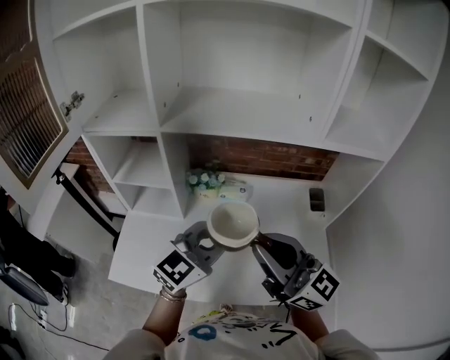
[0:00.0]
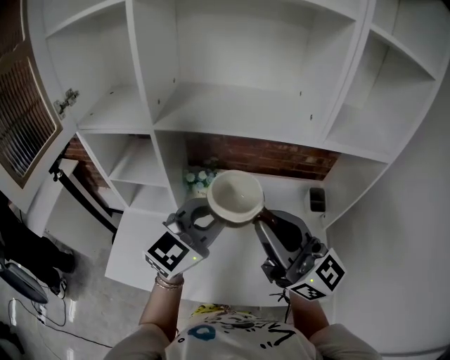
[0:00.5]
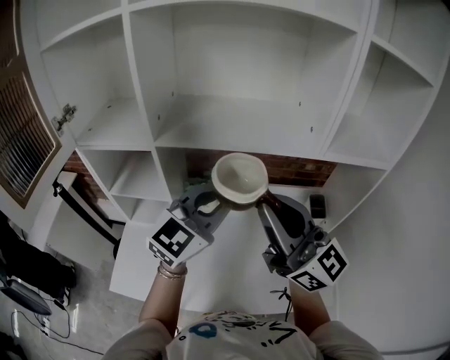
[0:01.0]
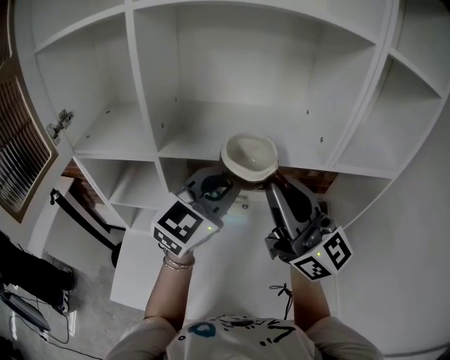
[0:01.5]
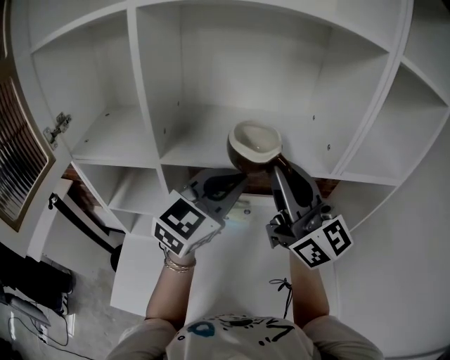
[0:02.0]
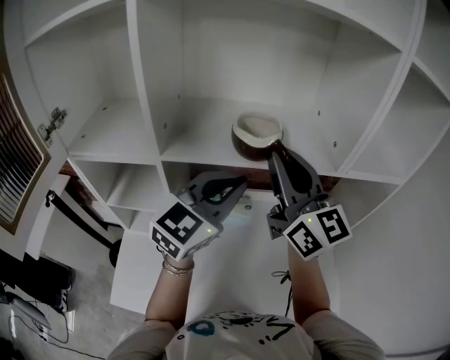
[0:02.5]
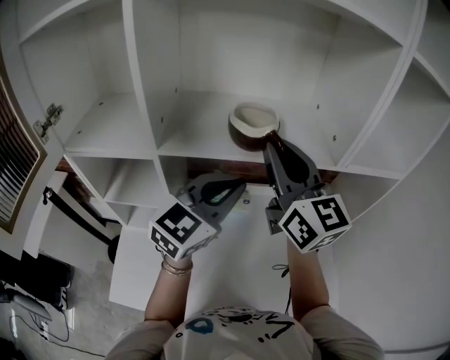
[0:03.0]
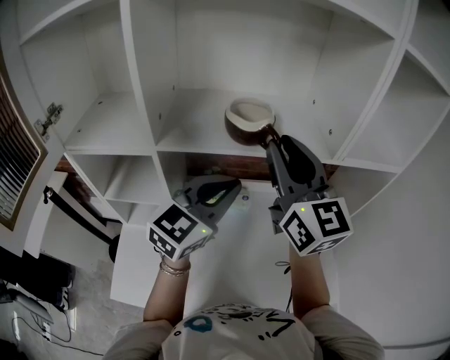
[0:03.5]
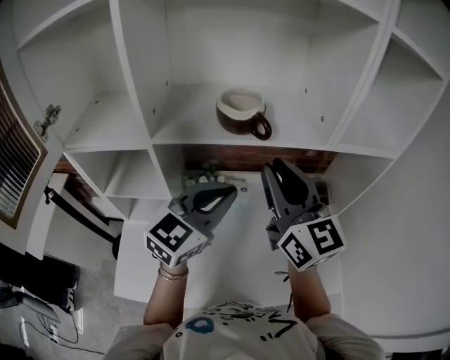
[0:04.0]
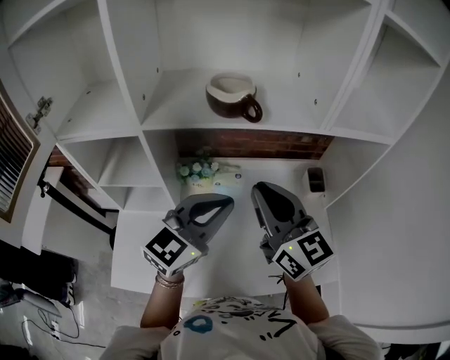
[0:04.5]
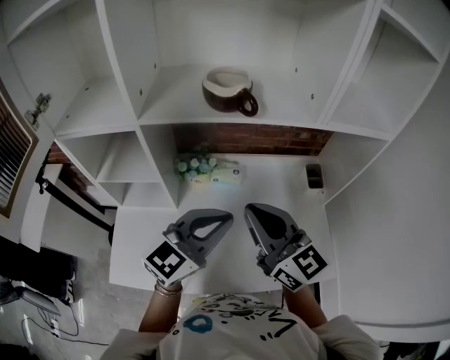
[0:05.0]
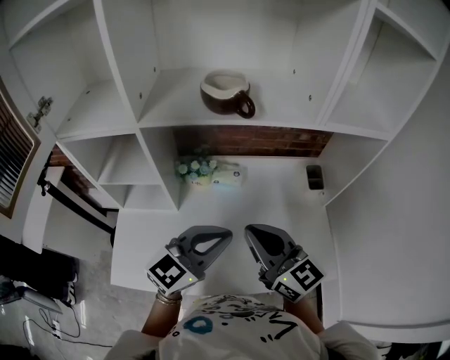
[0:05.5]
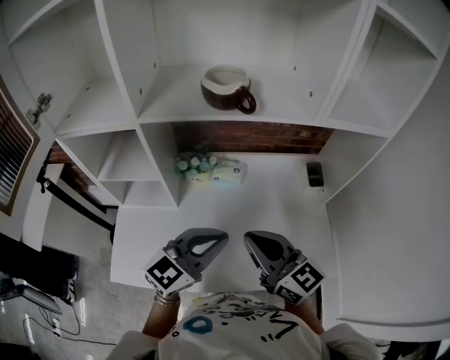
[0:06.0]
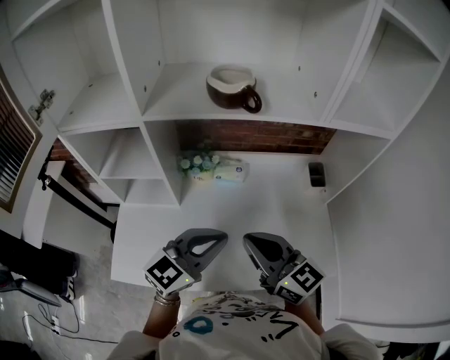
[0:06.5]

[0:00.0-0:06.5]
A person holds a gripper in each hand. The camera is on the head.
0:00.0 to 0:02.0: The two grippers go some 20 cm forward and upward.
0:02.0 to 0:04.5: The right gripper is displaced downward and backward by some 15 cm, and turns by approximately 20 degrees. Meanwhile the left gripper goes about 15 cm backward and downward.
0:04.5 to 0:06.5: Both grippers move backward and downward, some 15 cm.

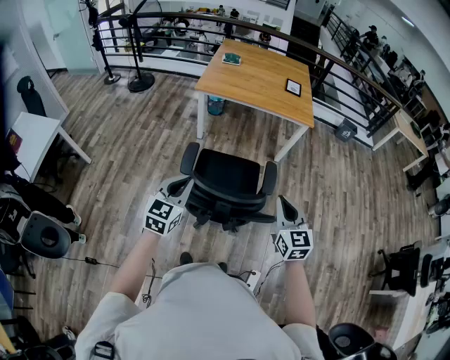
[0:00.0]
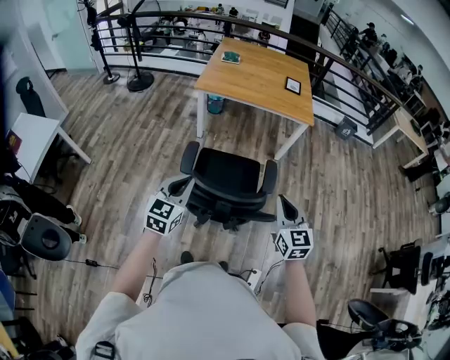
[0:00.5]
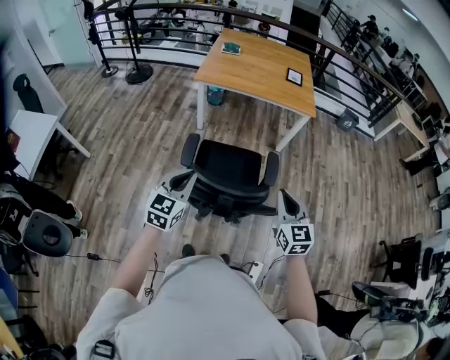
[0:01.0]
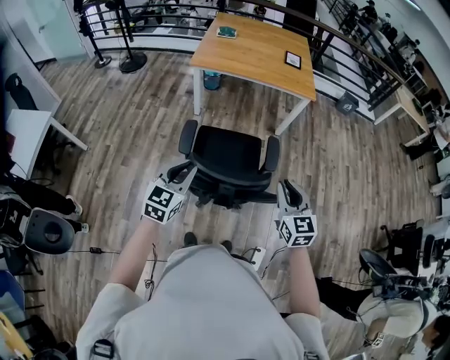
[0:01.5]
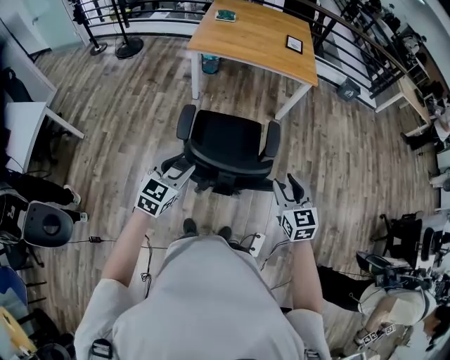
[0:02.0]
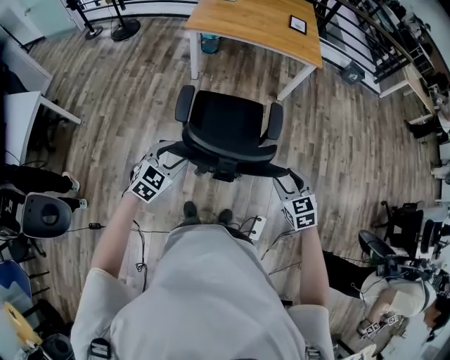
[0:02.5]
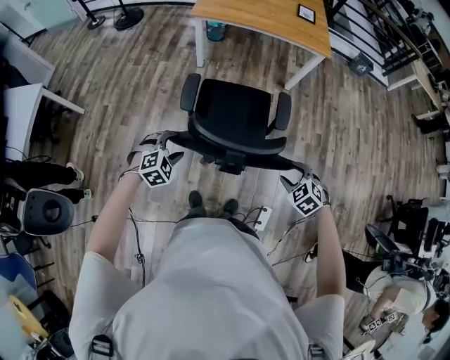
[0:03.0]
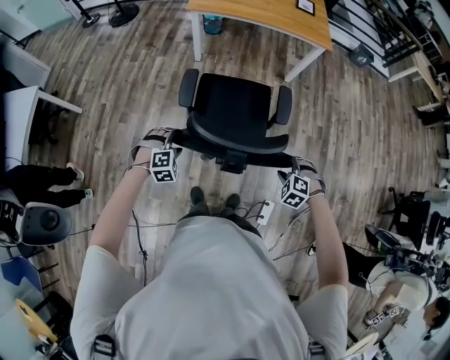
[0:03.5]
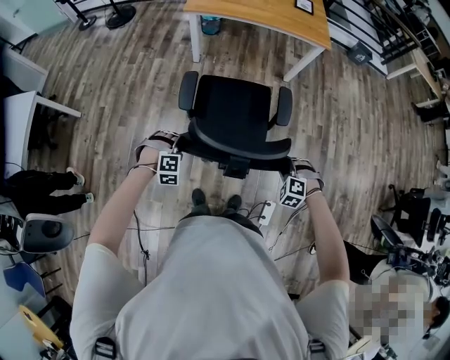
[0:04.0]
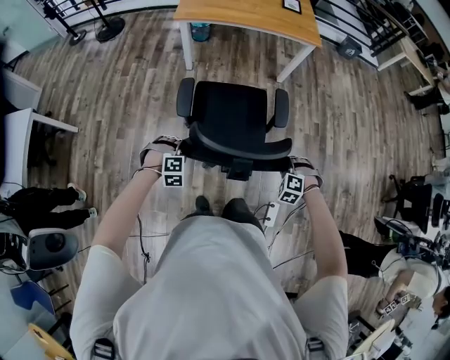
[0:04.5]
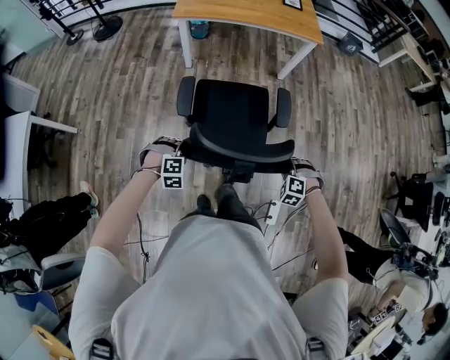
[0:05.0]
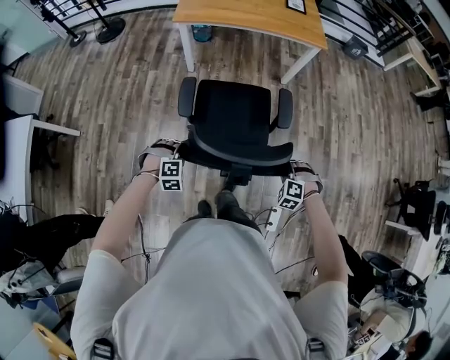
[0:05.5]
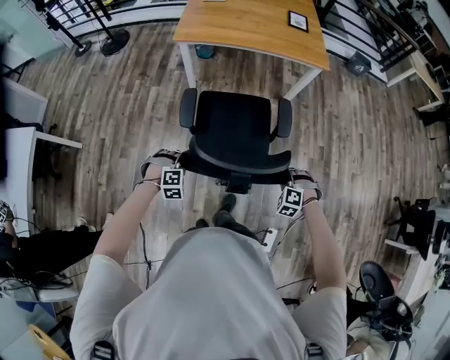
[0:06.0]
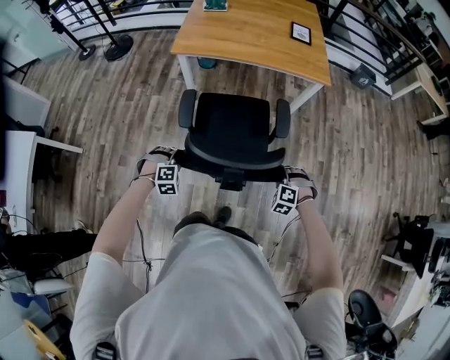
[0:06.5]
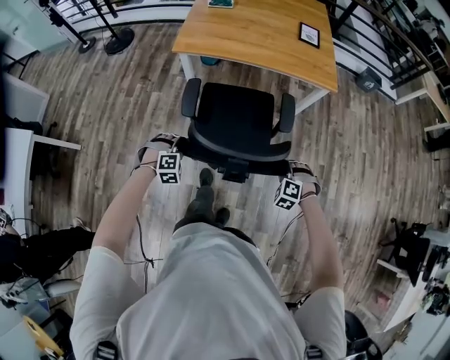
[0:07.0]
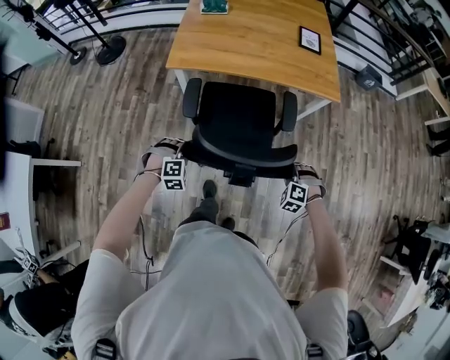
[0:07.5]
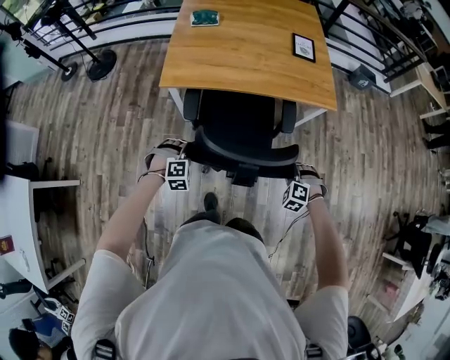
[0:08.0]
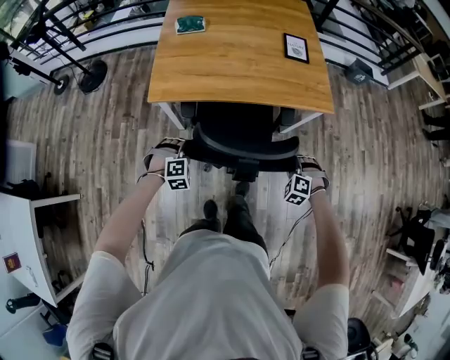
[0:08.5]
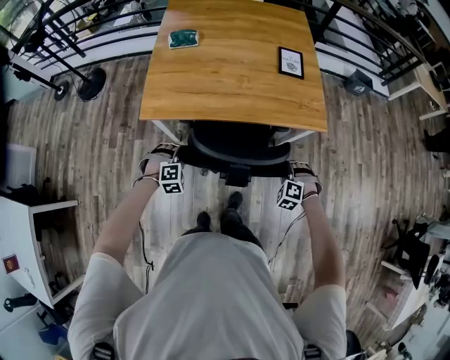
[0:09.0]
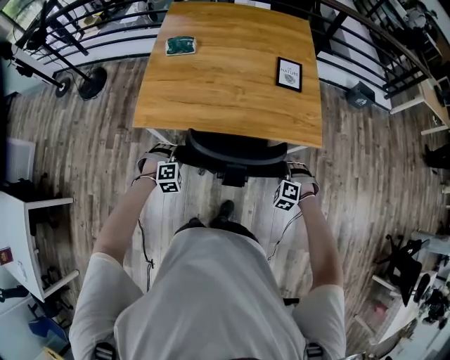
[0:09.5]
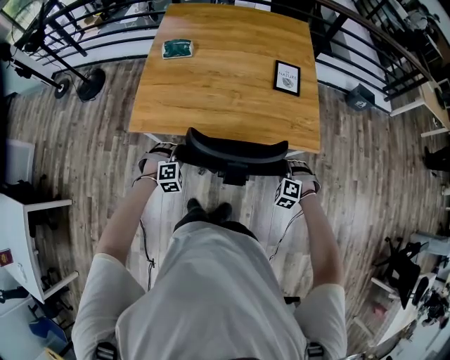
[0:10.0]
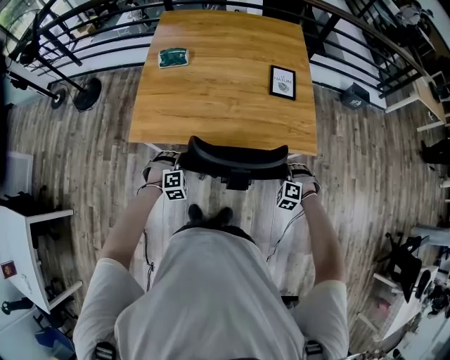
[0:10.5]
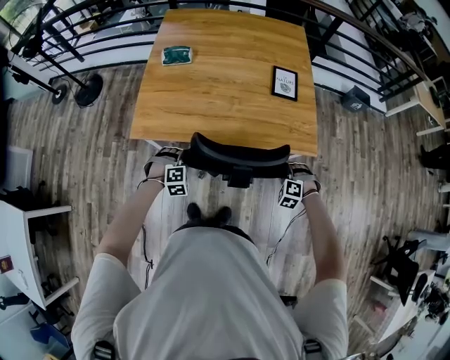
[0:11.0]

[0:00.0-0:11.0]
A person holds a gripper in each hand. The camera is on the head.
0:00.0 to 0:02.0: Both grippers move downward, about 5 cm. The left gripper opens up. The right gripper opens.
0:02.0 to 0:03.5: The two grippers go roughly 20 cm downward. The left gripper tips its fingers downward by roughly 40 degrees; the right gripper angles its fingers downward, by roughly 40 degrees.
0:03.5 to 0:05.5: The grippers both shift forward by some 5 cm. The left gripper closes up; the right gripper closes up.
0:05.5 to 0:07.5: Both grippers move forward, about 40 cm.
0:07.5 to 0:09.0: Both grippers travel together forward, about 25 cm.
0:09.0 to 0:11.0: Both grippers move forward, about 10 cm.

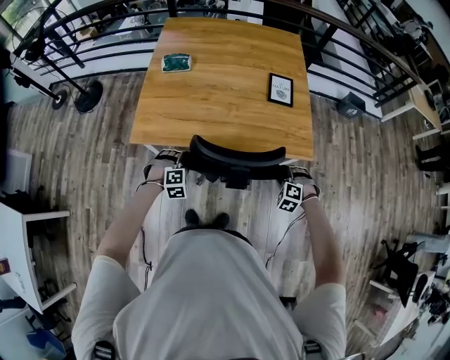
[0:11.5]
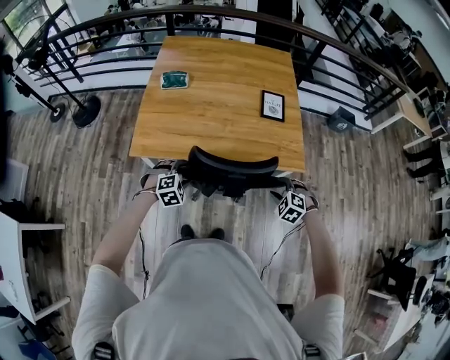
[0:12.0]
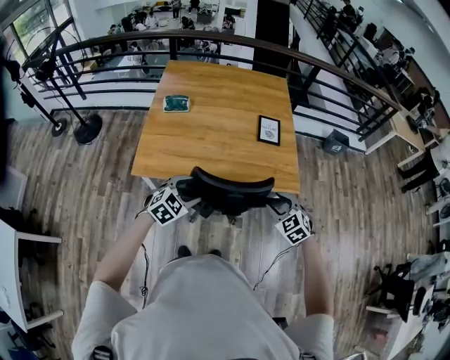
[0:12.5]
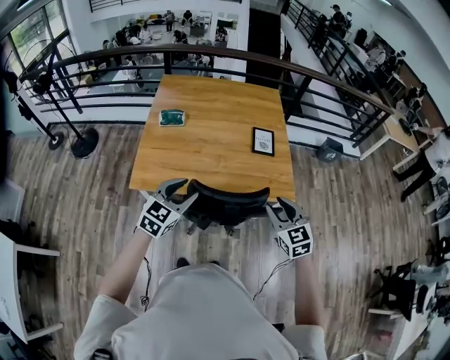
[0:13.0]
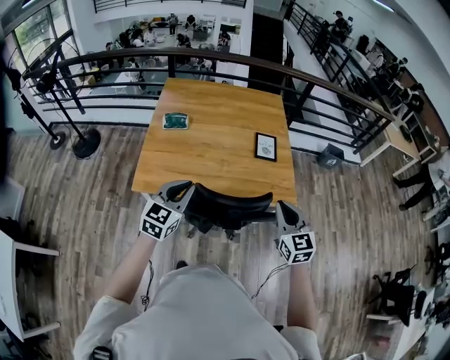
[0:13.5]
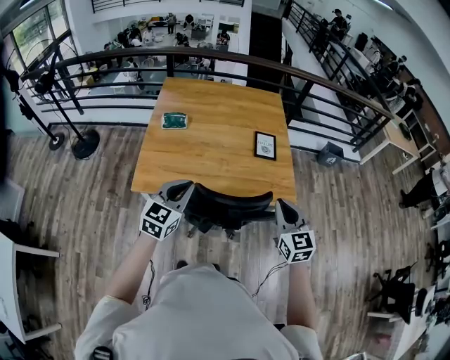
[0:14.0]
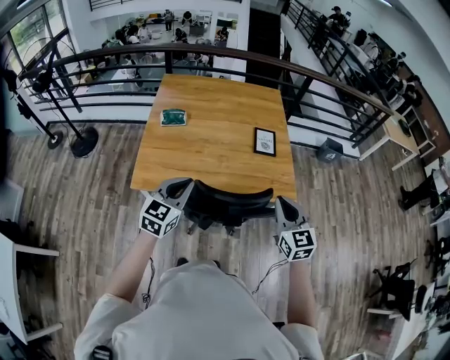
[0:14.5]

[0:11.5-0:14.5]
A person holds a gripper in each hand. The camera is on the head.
0:11.5 to 0:13.0: Both grippers move upward, about 25 cm. The right gripper tilts its fingers roughly 40 degrees upward. Meanwhile the left gripper tilts its fingers approximately 40 degrees upward.
0:13.0 to 0:14.5: The right gripper closes its fingers, while the left gripper closes up.

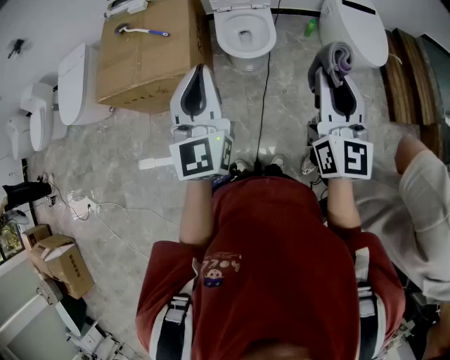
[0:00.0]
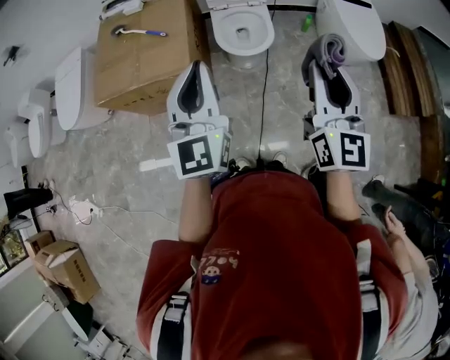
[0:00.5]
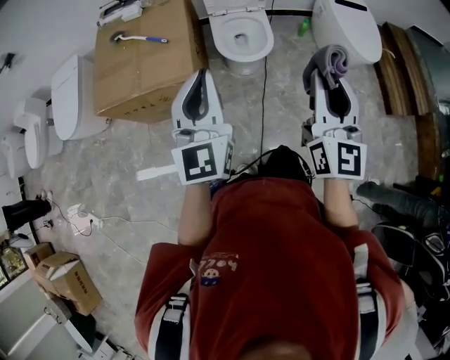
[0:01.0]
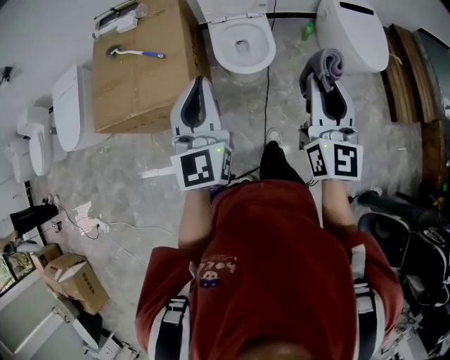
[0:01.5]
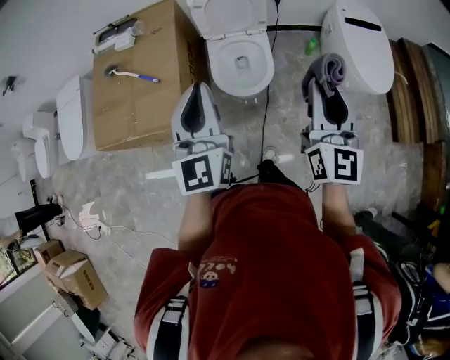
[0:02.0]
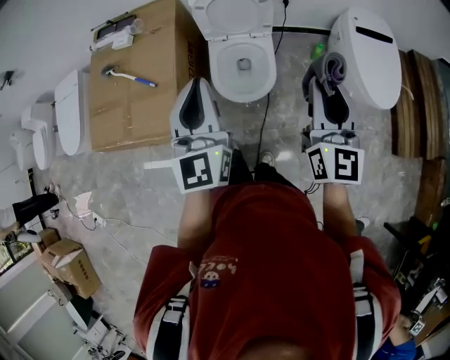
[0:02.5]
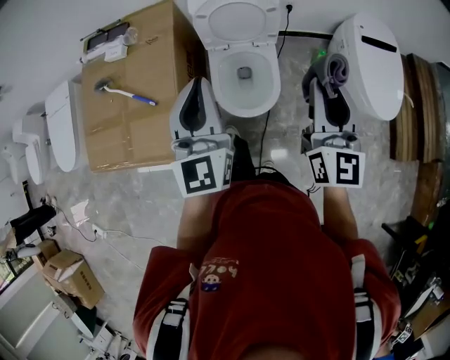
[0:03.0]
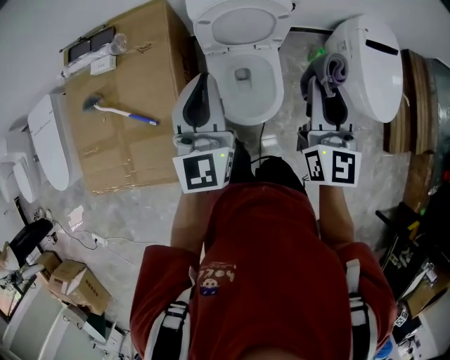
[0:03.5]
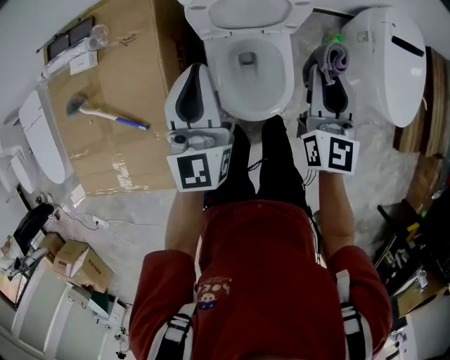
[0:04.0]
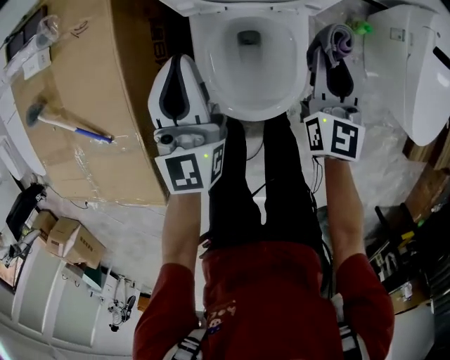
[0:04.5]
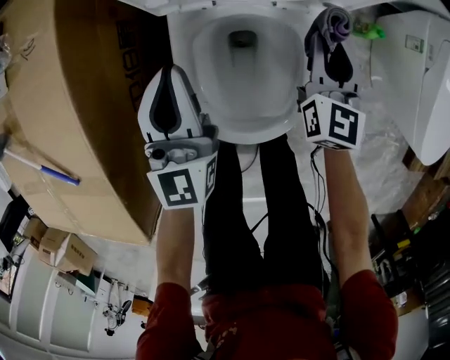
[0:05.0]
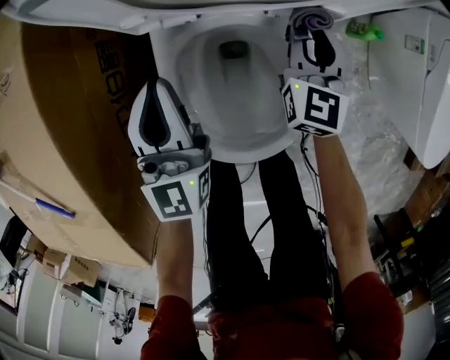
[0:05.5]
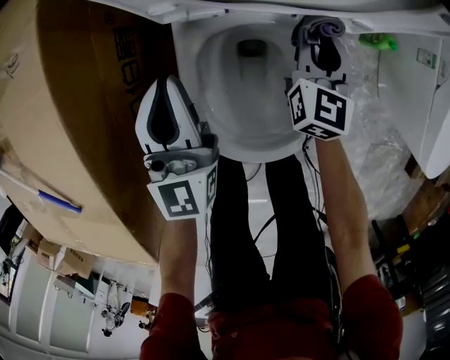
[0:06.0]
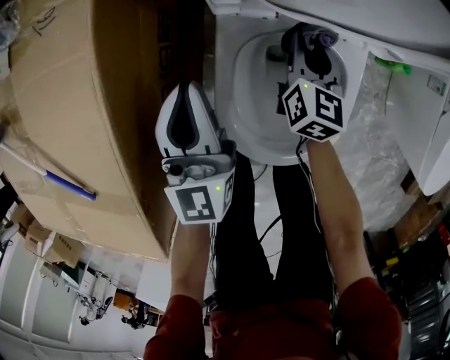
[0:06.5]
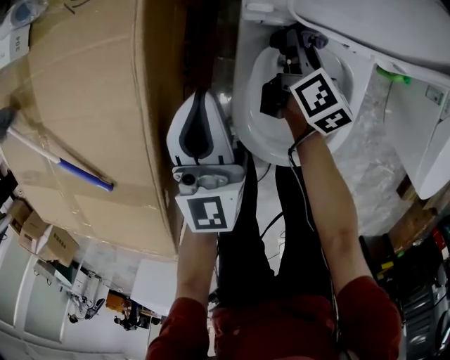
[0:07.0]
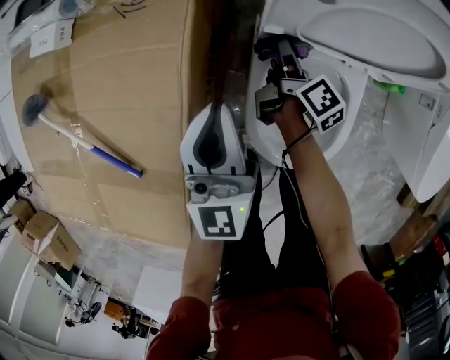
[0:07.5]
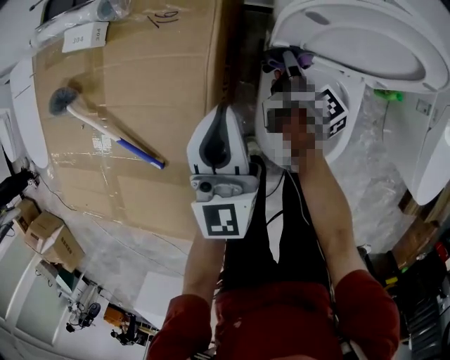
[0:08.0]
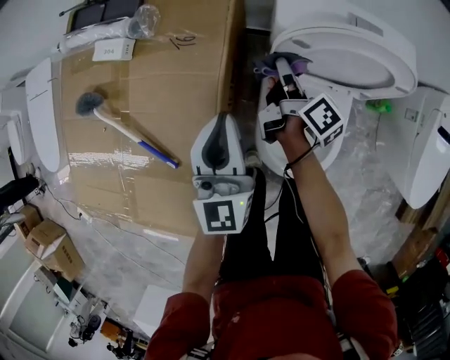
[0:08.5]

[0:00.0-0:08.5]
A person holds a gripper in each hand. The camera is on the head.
0:00.0 to 0:02.0: Both grippers move forward, roughly 25 cm.
0:02.0 to 0:04.0: Both grippers travel together forward and downward, roughly 40 cm.
0:04.0 to 0:06.5: Both grippers move downward, about 40 cm. The right gripper turns by some 20 degrees.
0:06.5 to 0:08.5: The right gripper goes some 20 cm upward and to the left, and rotates around the line of its fingers by approximately 60 degrees, clockwise from behind, while the left gripper heads upward, covering about 20 cm.
